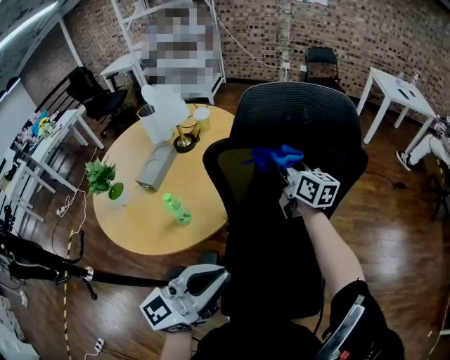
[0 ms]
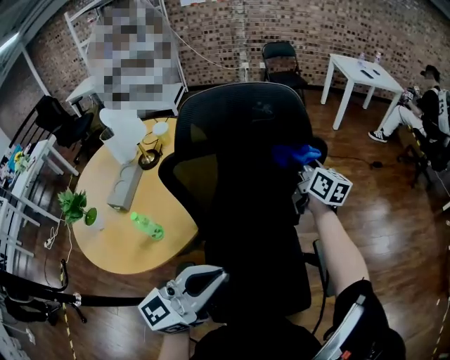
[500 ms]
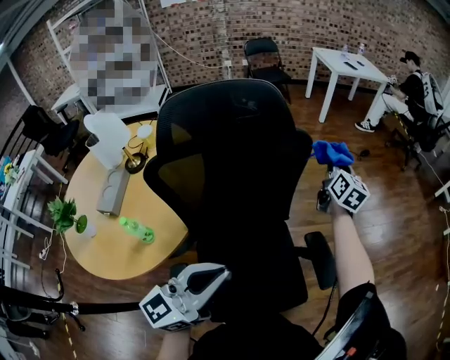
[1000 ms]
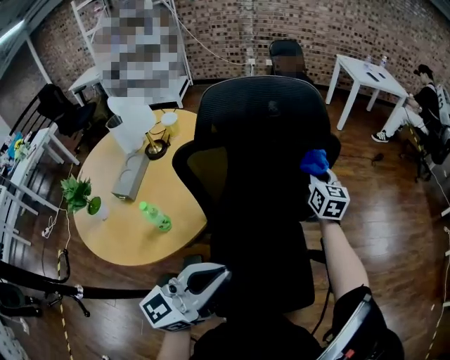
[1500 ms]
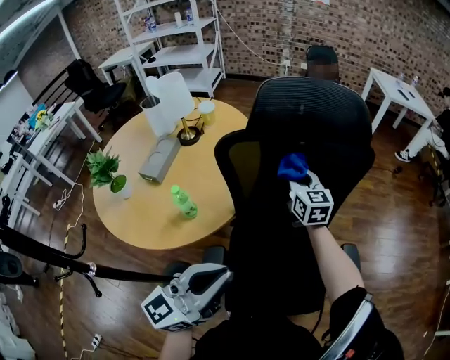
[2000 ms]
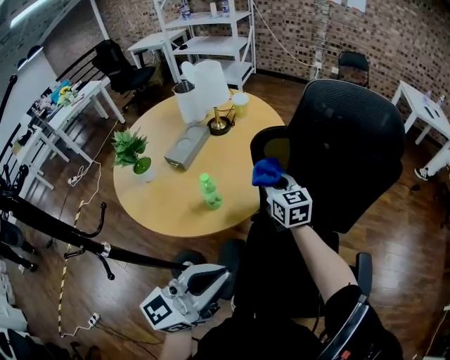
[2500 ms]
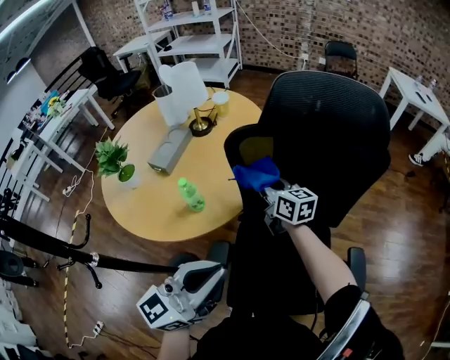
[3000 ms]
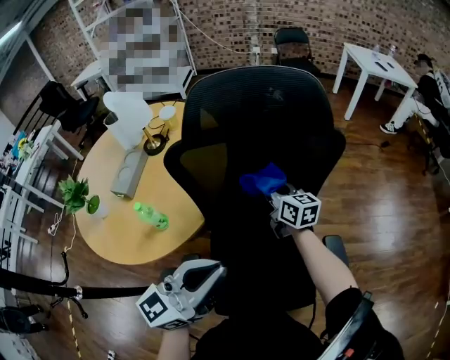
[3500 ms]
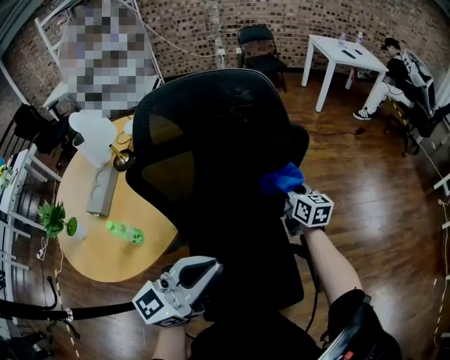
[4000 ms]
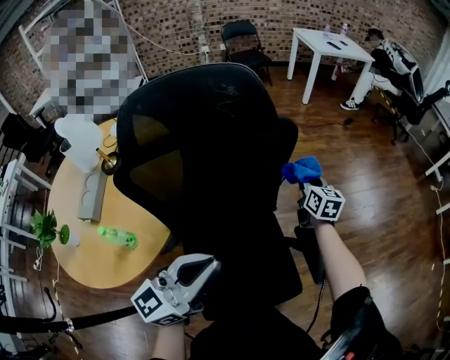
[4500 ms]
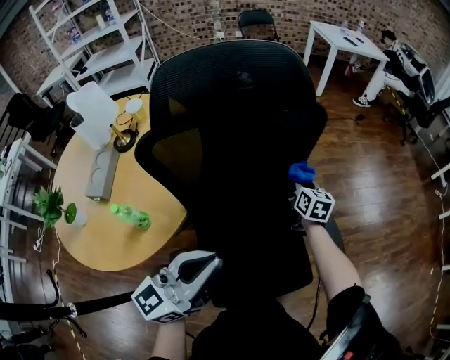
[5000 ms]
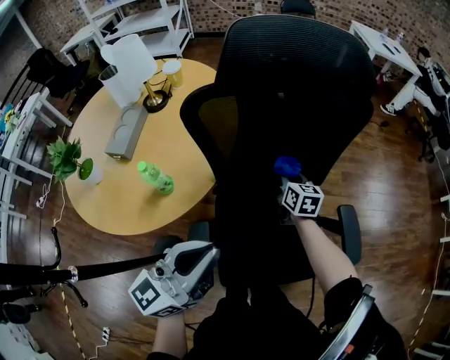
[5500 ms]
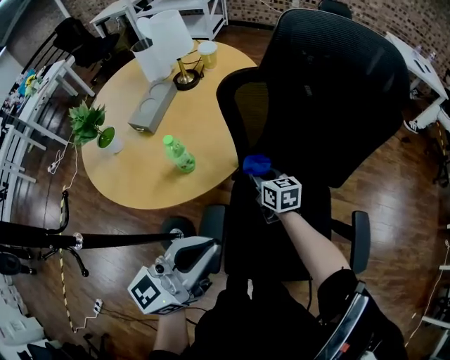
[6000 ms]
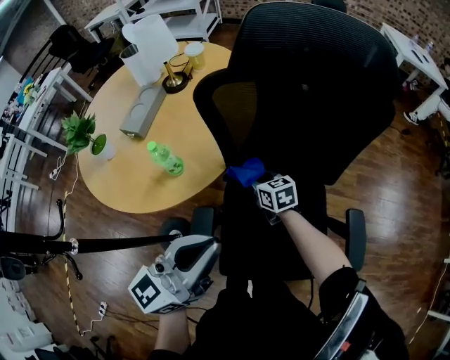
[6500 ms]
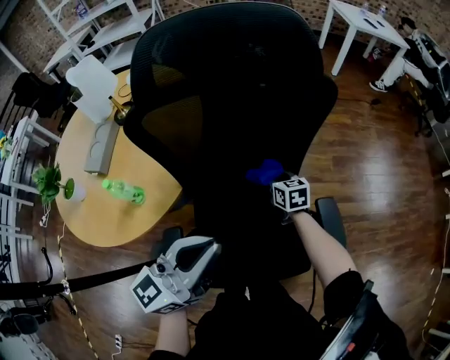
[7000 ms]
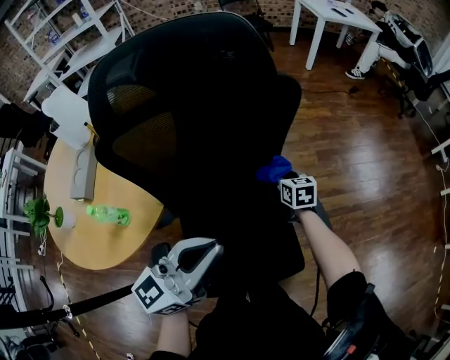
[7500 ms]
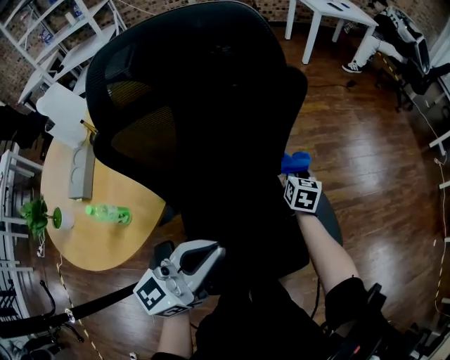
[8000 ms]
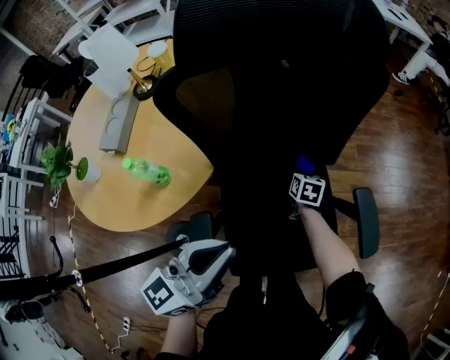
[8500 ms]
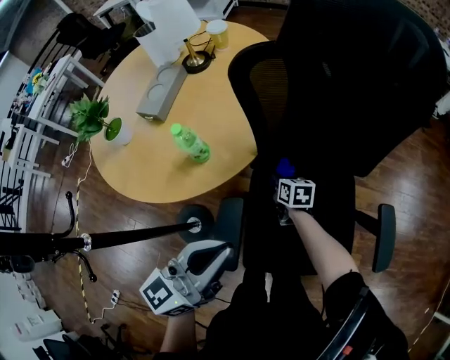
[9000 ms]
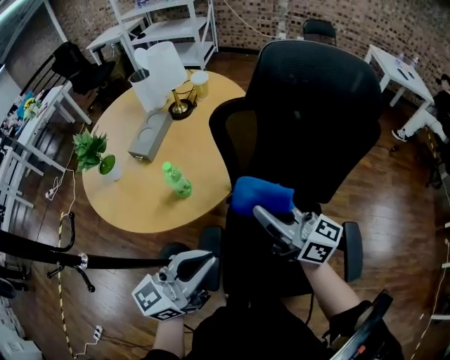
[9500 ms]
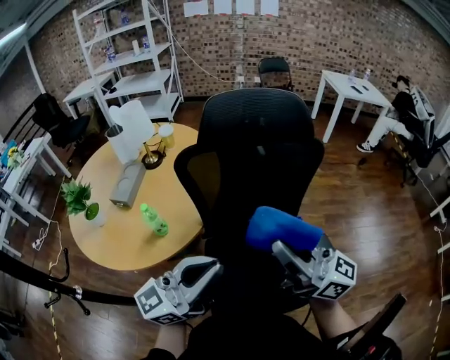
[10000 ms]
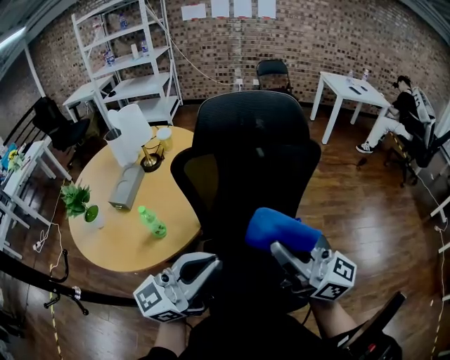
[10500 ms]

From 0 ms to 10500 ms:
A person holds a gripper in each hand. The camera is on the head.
From 0 ms to 2000 ms: The right gripper changes its angle by approximately 30 degrees.
From 2000 ms to 4000 ms: The right gripper changes place by some 25 cm, and rotates roughly 20 degrees; the left gripper changes place by some 15 cm.
From 4000 ms to 6500 ms: The right gripper shifts by roughly 35 cm, and turns by approximately 40 degrees, while the left gripper changes place by about 15 cm.
From 6500 ms to 8500 ms: The right gripper turns by approximately 50 degrees.
From 8500 ms to 10500 ms: The left gripper heads upward, covering approximately 15 cm, and turns by about 20 degrees. The right gripper moves upward, approximately 50 cm, and angles its fingers upward, by some 70 degrees.

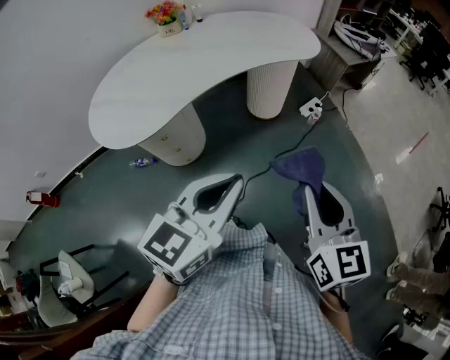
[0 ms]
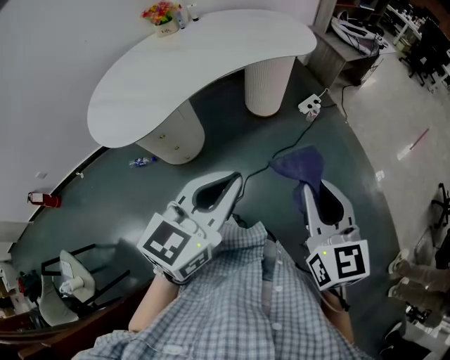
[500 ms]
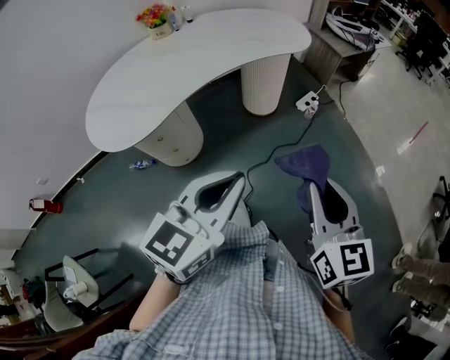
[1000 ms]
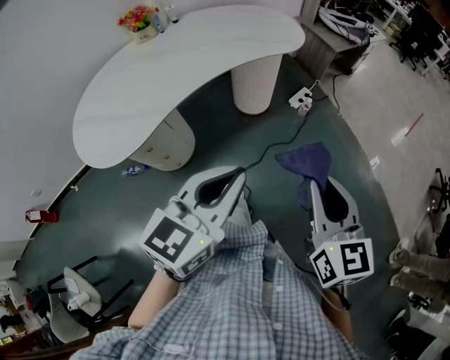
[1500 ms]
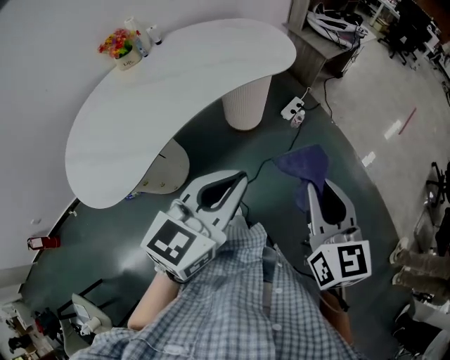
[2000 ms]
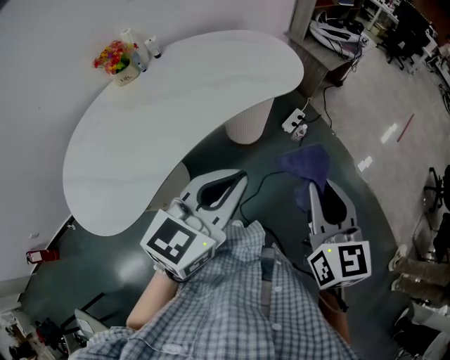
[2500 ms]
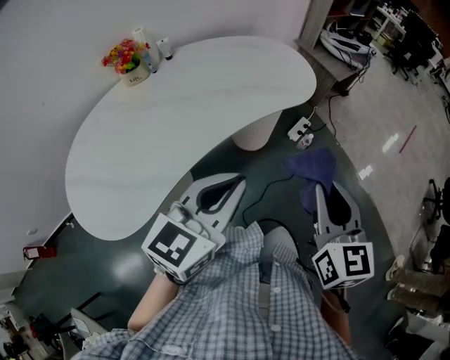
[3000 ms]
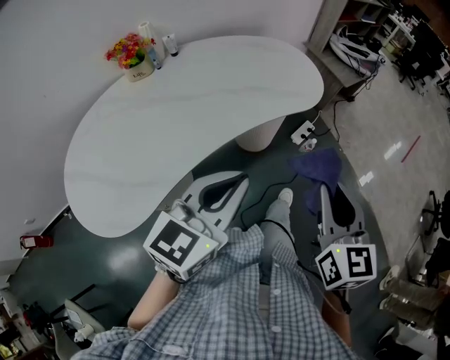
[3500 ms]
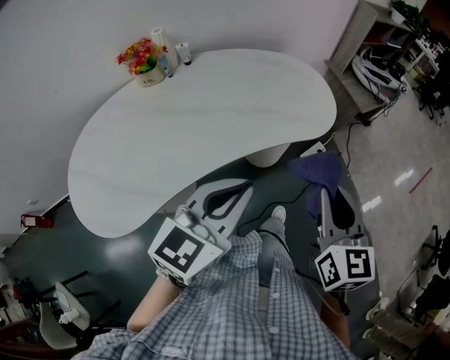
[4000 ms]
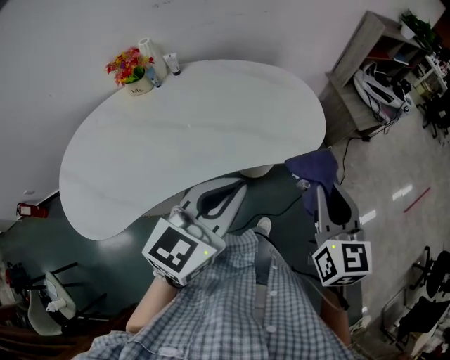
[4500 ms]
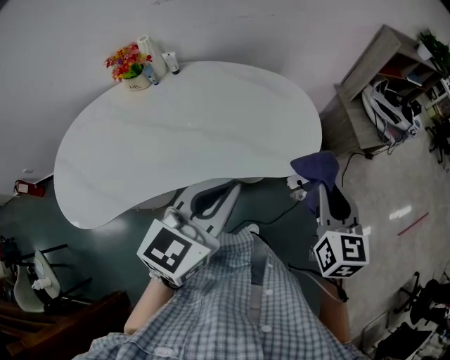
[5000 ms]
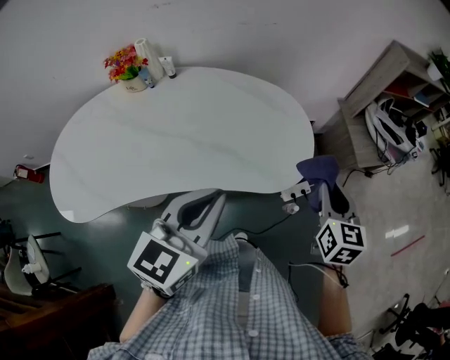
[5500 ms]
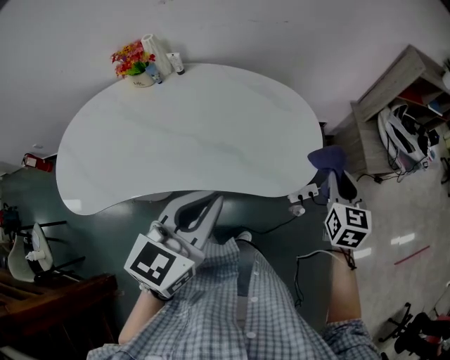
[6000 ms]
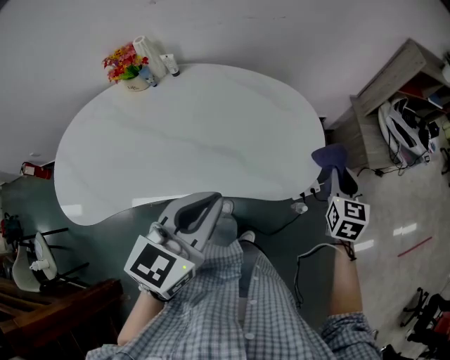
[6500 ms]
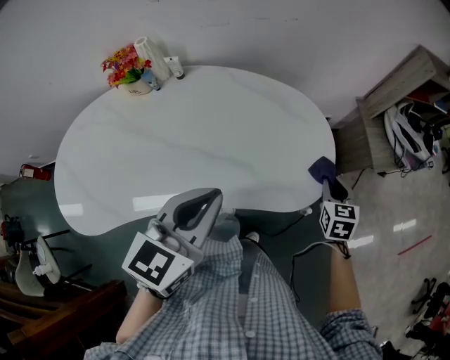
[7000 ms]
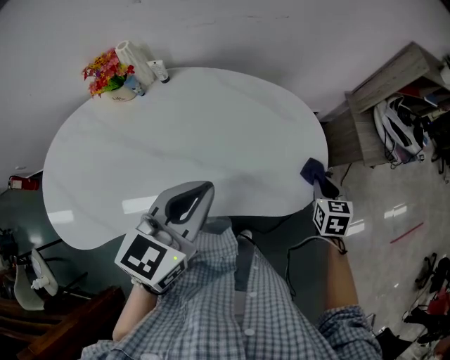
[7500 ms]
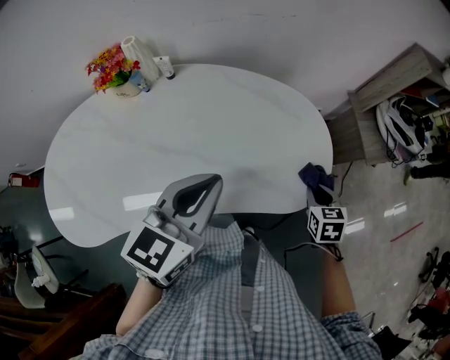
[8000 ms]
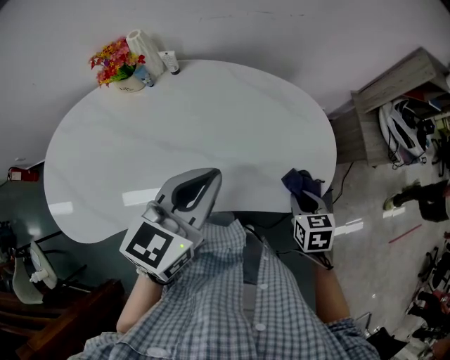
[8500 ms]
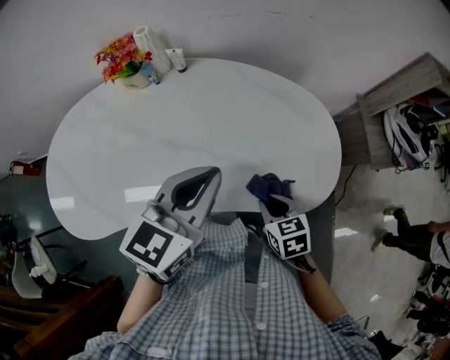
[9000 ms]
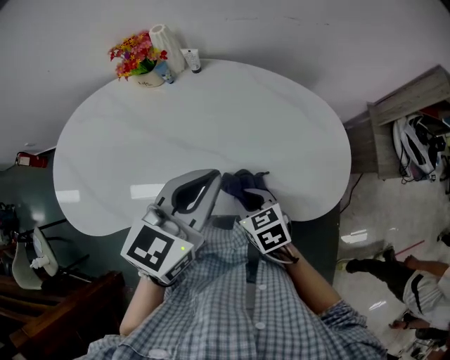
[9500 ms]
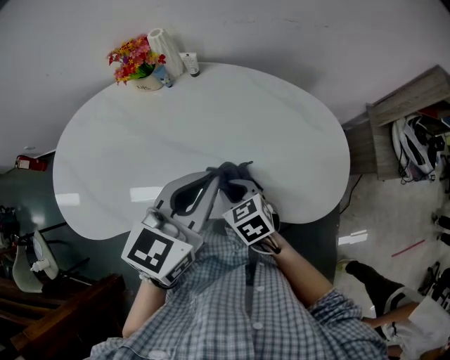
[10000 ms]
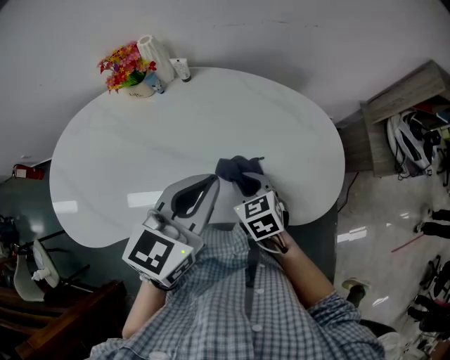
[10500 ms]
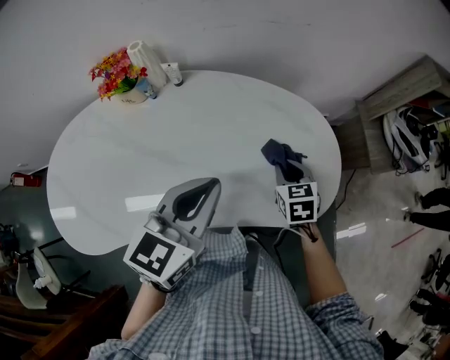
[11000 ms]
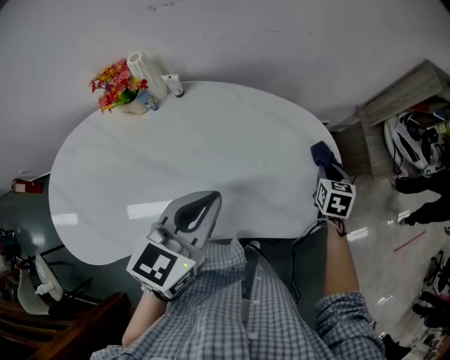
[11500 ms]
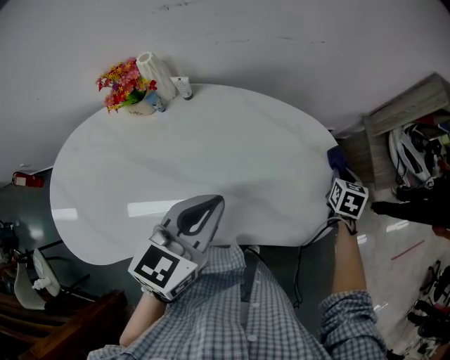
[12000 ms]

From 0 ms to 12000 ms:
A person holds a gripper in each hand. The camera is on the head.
From 0 ms to 2000 ms: The grippers both shift forward by about 15 cm.
From 2000 ms to 4000 ms: Both grippers travel together forward, some 20 cm.
From 4000 ms to 6000 ms: The right gripper travels forward and to the right by some 40 cm. Meanwhile the left gripper is displaced forward and to the right by about 20 cm, and rotates about 30 degrees.
From 6000 ms to 8000 ms: The left gripper moves forward and to the left, approximately 15 cm; the right gripper heads downward and to the left, covering about 15 cm, and rotates approximately 20 degrees.
From 8000 ms to 10000 ms: The right gripper ends up some 35 cm from where it was, and turns by approximately 40 degrees, while the left gripper changes place by roughly 5 cm.
From 10000 ms to 12000 ms: The right gripper shifts by approximately 40 cm, and turns by some 50 degrees.

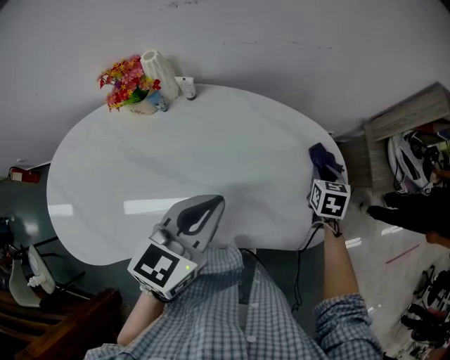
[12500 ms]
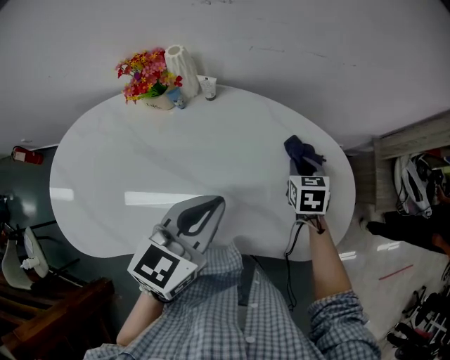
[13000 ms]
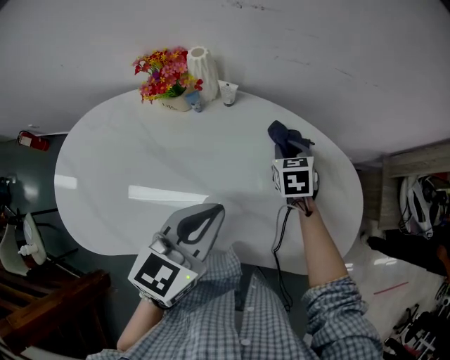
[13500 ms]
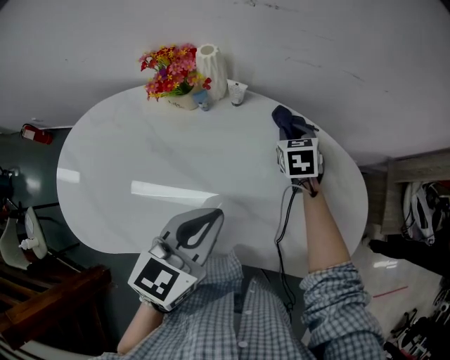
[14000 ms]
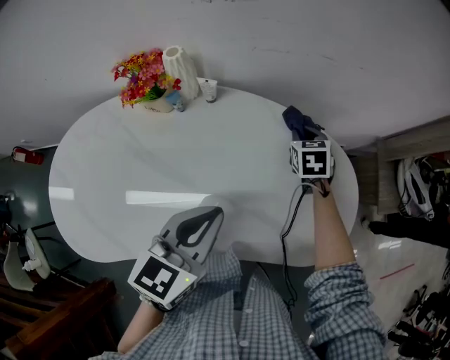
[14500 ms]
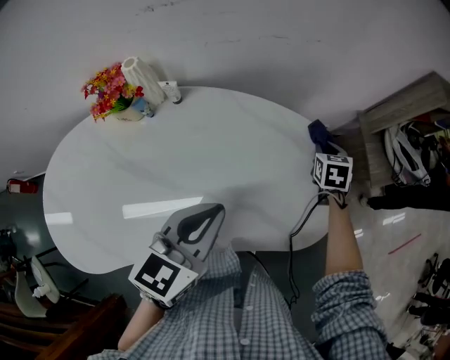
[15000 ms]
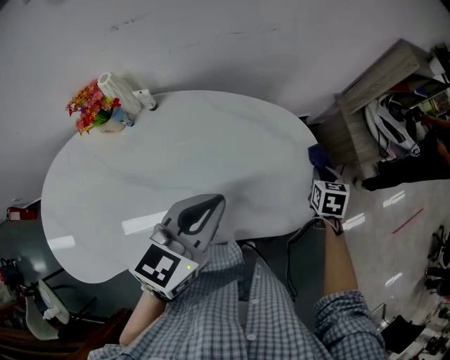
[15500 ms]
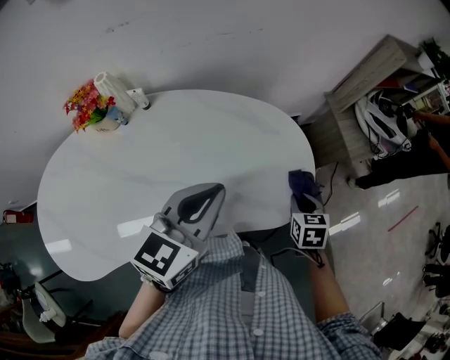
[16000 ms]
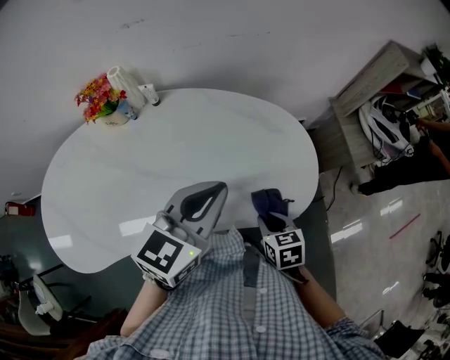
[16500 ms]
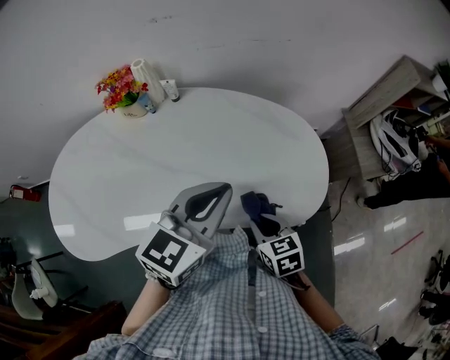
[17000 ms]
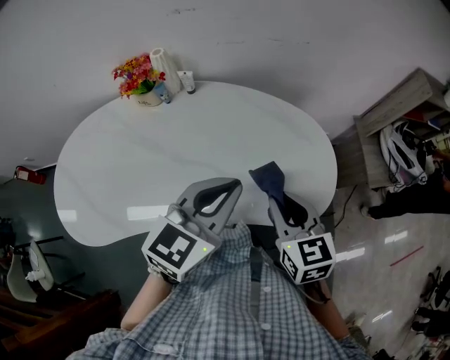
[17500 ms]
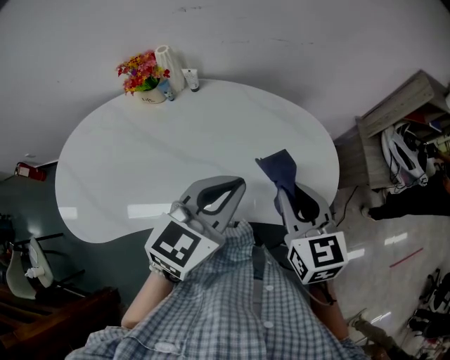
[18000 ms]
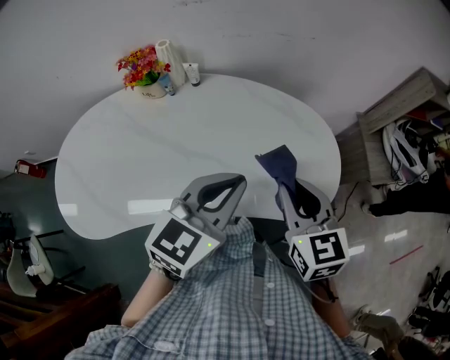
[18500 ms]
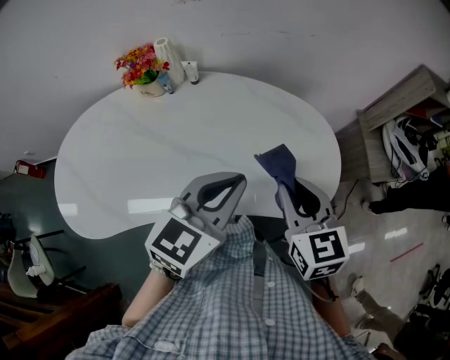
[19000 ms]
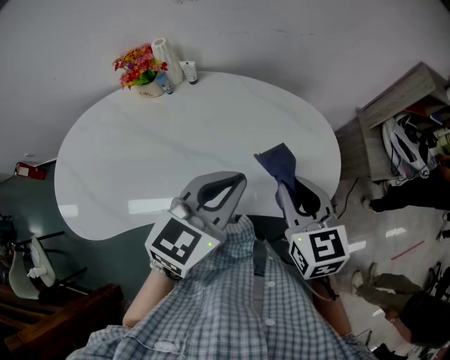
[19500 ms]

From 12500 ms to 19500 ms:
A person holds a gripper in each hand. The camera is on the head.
From 12500 ms to 14500 ms: The right gripper heads to the left and forward, covering some 20 cm.
From 14500 ms to 16000 ms: The left gripper shifts some 15 cm to the right. The right gripper moves to the right and backward, some 35 cm, and swivels some 20 degrees.
From 16000 ms to 17500 ms: The left gripper changes place by roughly 5 cm. Meanwhile the right gripper heads to the left and upward, covering some 25 cm, and rotates approximately 40 degrees.
From 17500 ms to 19500 ms: The grippers make only small movements.
